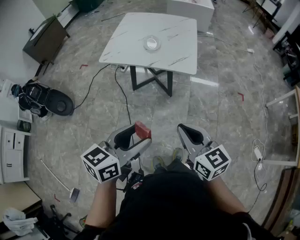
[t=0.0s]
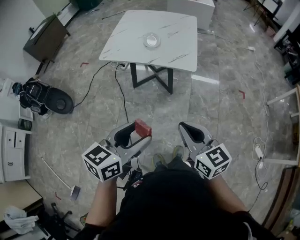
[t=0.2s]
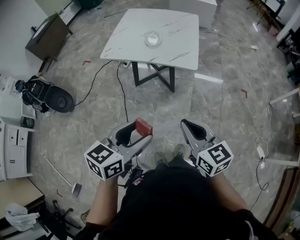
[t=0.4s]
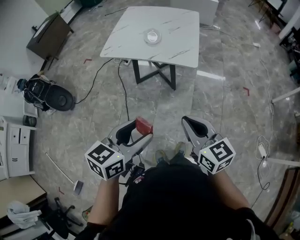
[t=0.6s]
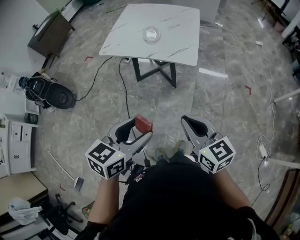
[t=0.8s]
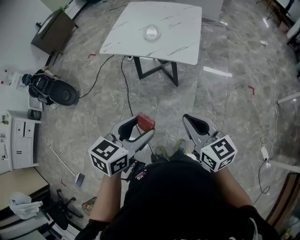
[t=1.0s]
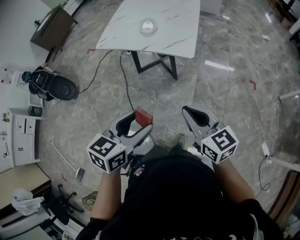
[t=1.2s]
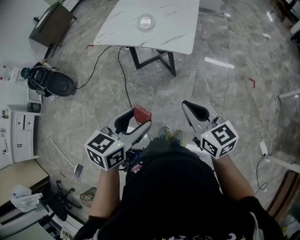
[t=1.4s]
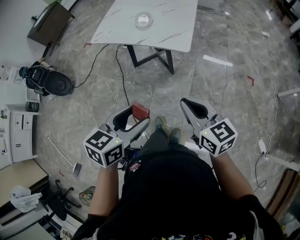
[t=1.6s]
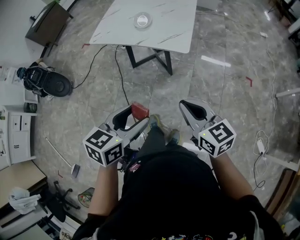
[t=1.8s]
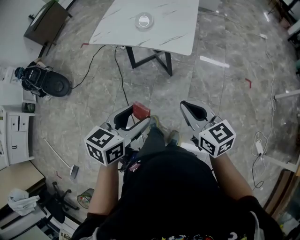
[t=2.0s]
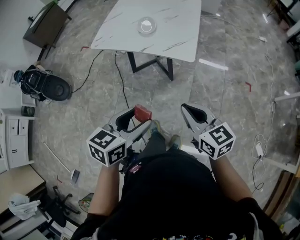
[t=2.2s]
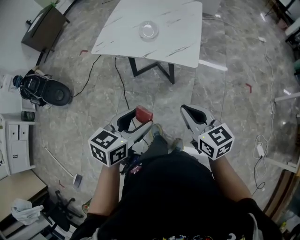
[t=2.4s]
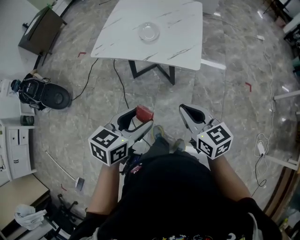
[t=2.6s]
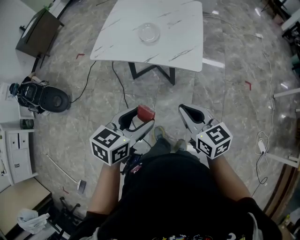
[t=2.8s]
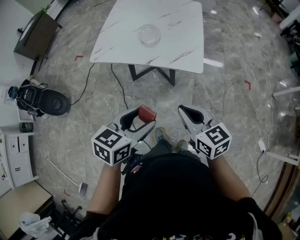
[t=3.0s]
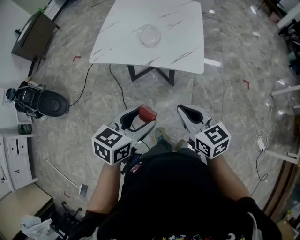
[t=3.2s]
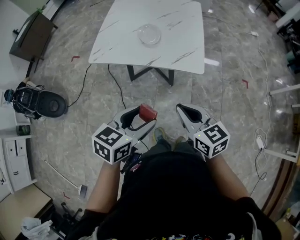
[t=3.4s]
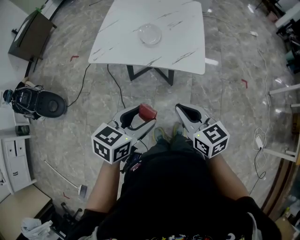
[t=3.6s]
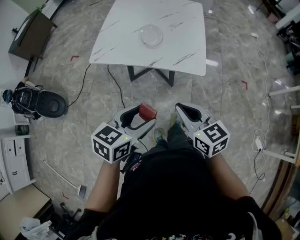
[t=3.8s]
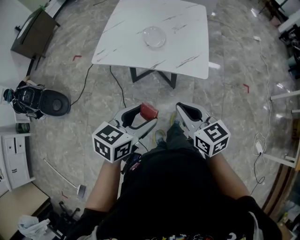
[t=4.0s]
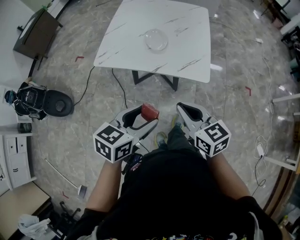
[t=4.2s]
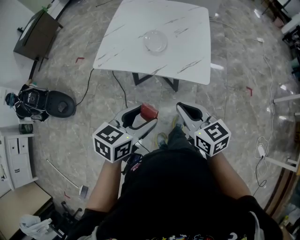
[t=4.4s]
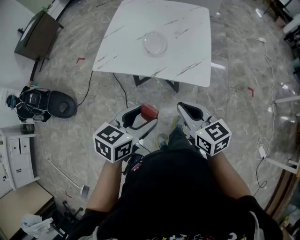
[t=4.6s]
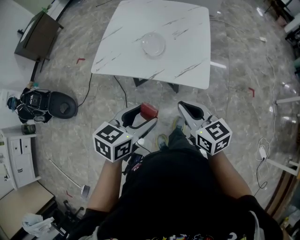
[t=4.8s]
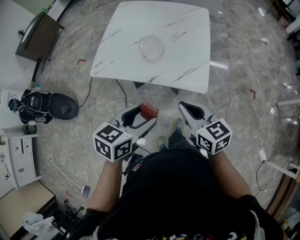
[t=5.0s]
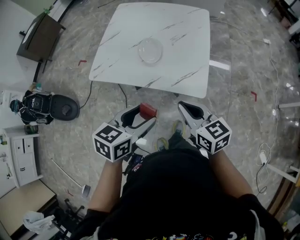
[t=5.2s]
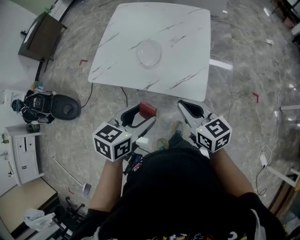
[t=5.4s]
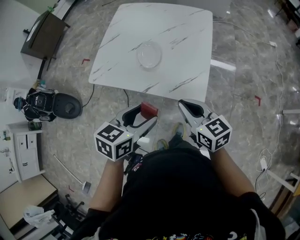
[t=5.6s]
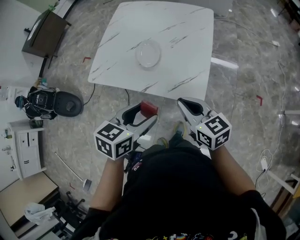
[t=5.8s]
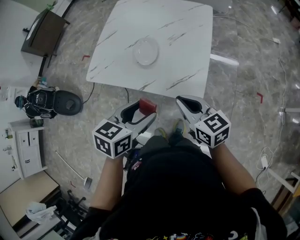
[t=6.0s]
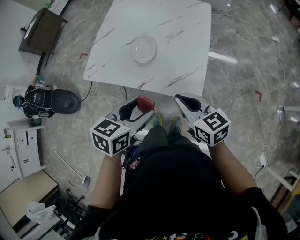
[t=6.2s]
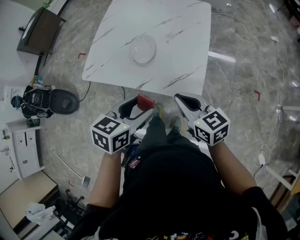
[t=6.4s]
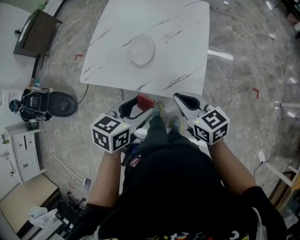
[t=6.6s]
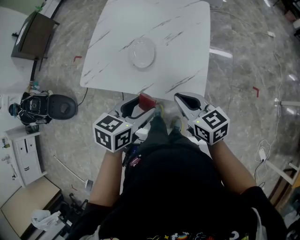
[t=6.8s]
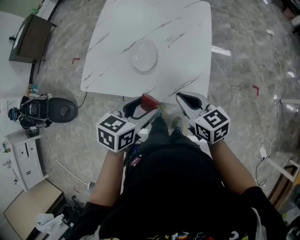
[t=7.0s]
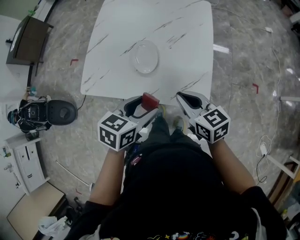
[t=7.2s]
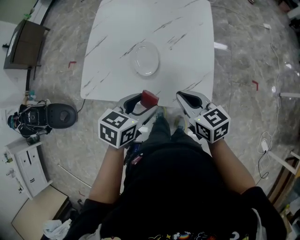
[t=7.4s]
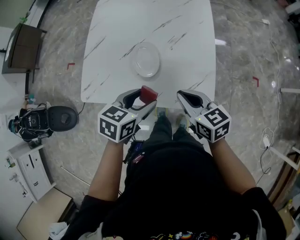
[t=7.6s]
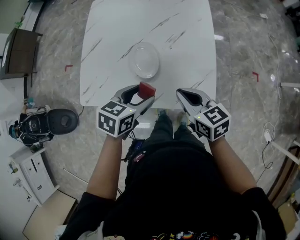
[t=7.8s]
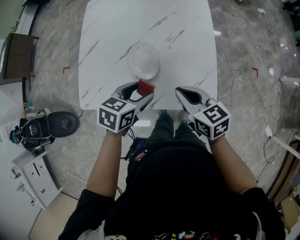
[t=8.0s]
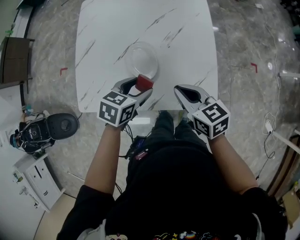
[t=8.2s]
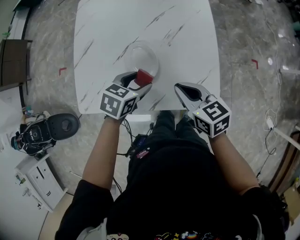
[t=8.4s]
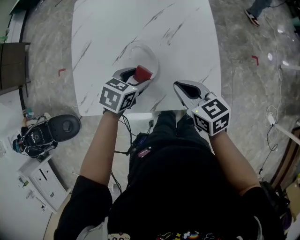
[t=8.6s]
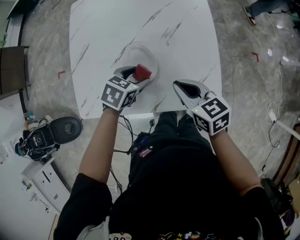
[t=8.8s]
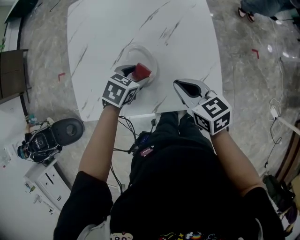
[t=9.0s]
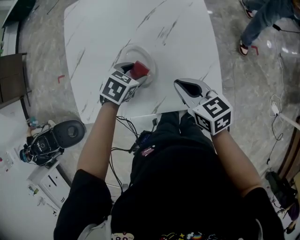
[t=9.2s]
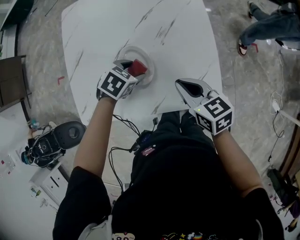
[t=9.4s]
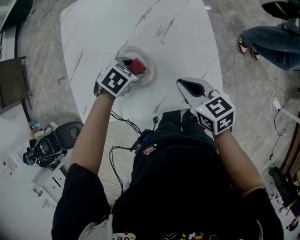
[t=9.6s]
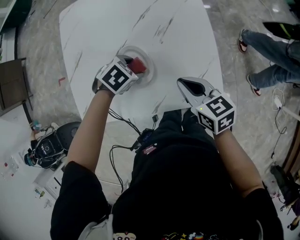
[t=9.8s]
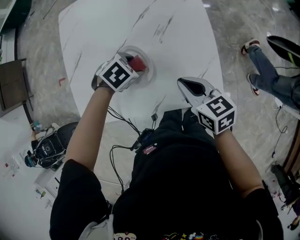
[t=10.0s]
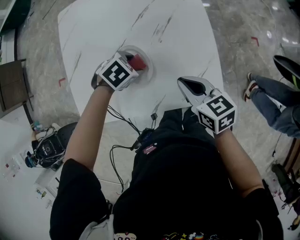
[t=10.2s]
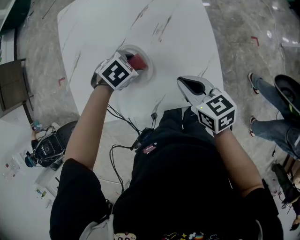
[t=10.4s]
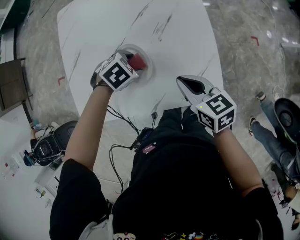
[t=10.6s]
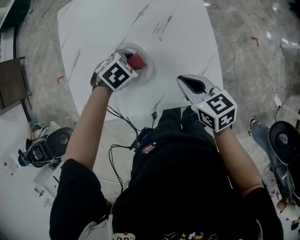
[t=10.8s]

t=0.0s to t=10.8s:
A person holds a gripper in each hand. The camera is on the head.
t=0.0s to t=1.6s: The right gripper shifts some 15 cm to the right and forward; the left gripper heads to the right and downward, covering approximately 15 cm.
t=1.6s to t=3.0s: The left gripper travels forward and to the left by approximately 20 cm, while the right gripper shifts about 15 cm to the left and forward.
t=3.0s to t=4.6s: The grippers both shift forward by about 10 cm.
t=4.6s to t=6.2s: The two grippers go roughly 15 cm forward and to the right.
t=6.2s to t=7.8s: The left gripper shifts roughly 20 cm forward, downward and to the left; the right gripper travels forward and to the left by some 15 cm.
t=7.8s to t=9.2s: The left gripper goes approximately 15 cm downward and forward, and swivels about 30 degrees, while the right gripper is displaced forward by about 5 cm.
t=9.2s to t=10.8s: The left gripper swivels roughly 20 degrees.

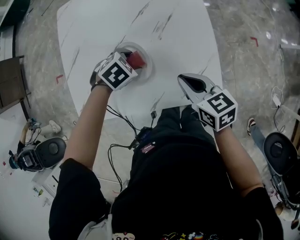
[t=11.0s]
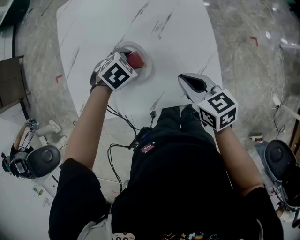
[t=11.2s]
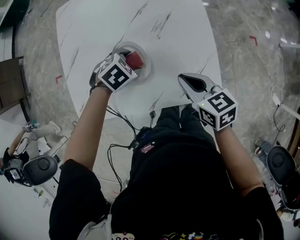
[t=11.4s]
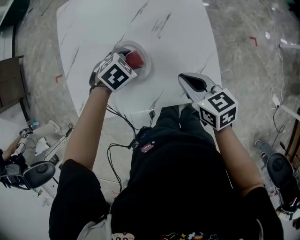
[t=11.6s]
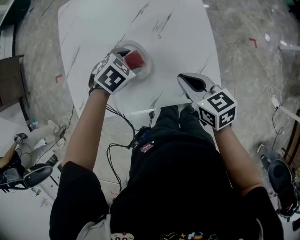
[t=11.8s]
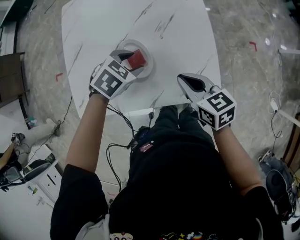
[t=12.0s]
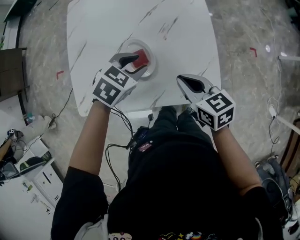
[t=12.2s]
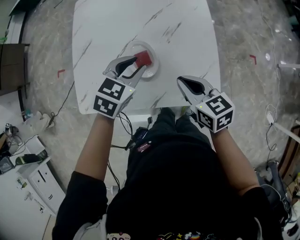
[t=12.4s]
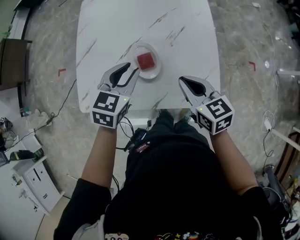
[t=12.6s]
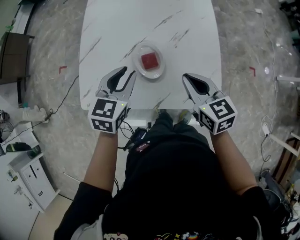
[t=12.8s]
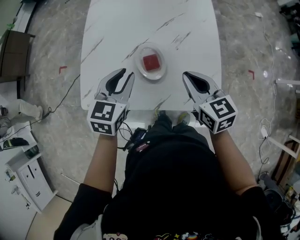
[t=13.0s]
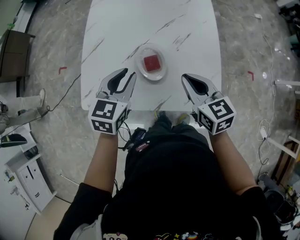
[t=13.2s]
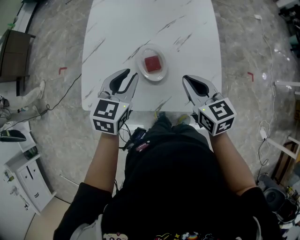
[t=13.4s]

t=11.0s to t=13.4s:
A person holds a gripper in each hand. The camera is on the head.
t=11.0s to t=12.2s: The left gripper travels upward by about 10 cm, and swivels roughly 20 degrees.
t=12.2s to t=13.4s: The right gripper goes some 5 cm upward; the left gripper heads to the left and upward, covering about 10 cm, and rotates roughly 40 degrees.

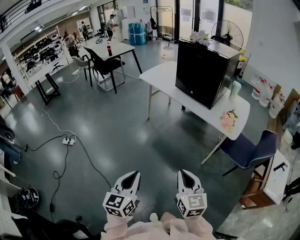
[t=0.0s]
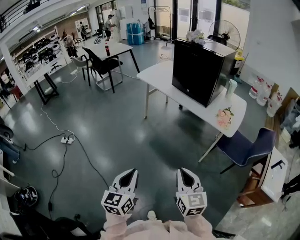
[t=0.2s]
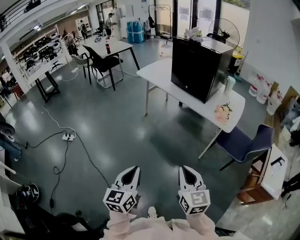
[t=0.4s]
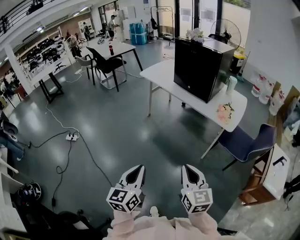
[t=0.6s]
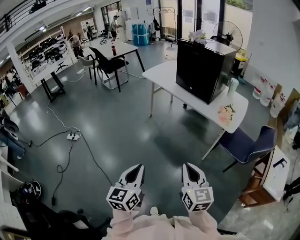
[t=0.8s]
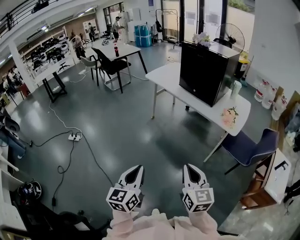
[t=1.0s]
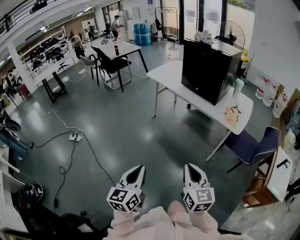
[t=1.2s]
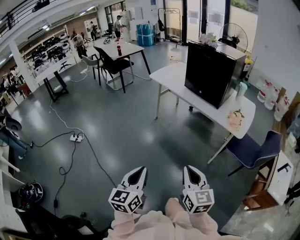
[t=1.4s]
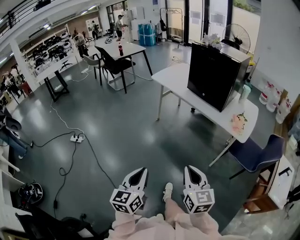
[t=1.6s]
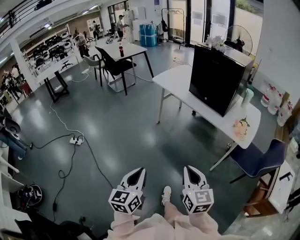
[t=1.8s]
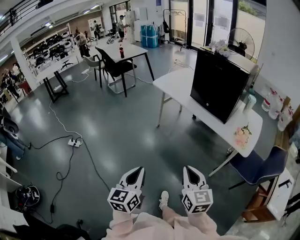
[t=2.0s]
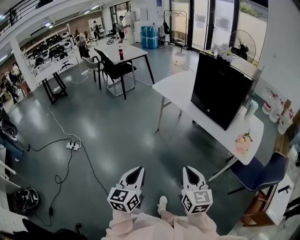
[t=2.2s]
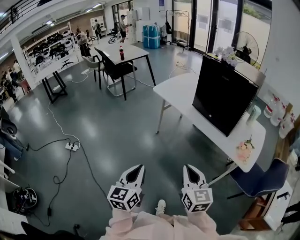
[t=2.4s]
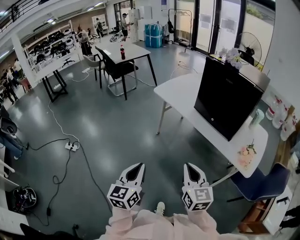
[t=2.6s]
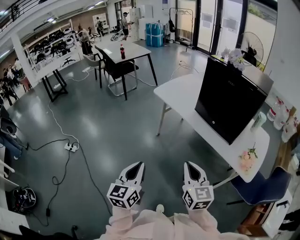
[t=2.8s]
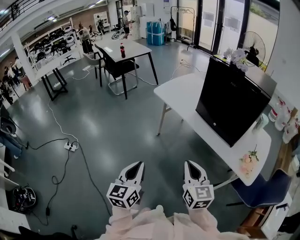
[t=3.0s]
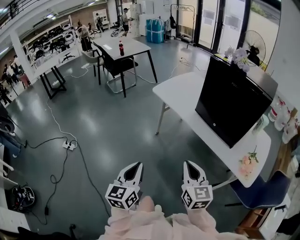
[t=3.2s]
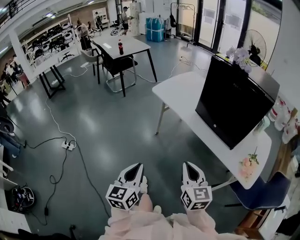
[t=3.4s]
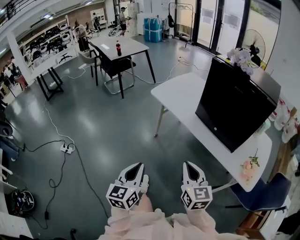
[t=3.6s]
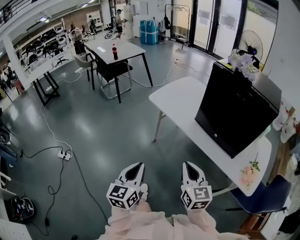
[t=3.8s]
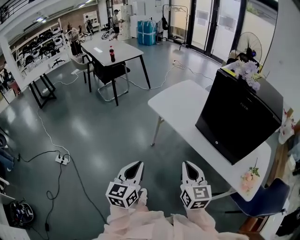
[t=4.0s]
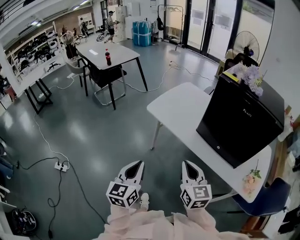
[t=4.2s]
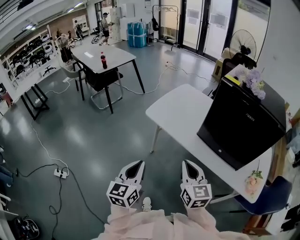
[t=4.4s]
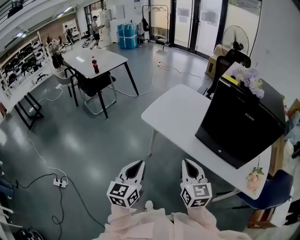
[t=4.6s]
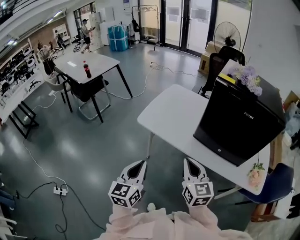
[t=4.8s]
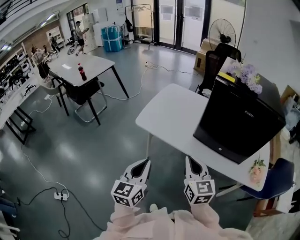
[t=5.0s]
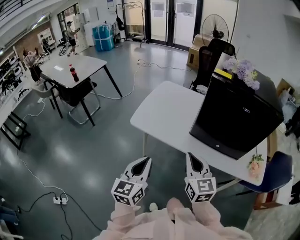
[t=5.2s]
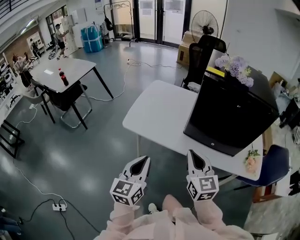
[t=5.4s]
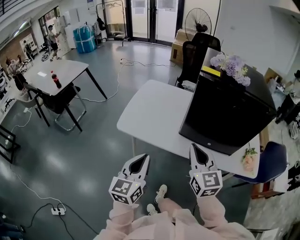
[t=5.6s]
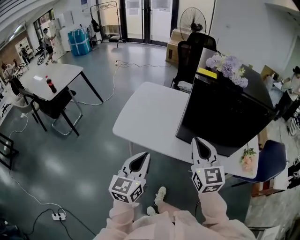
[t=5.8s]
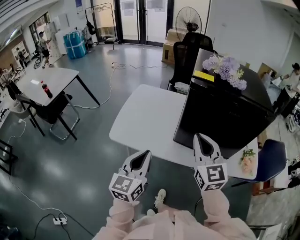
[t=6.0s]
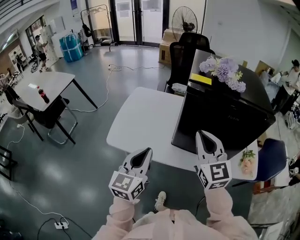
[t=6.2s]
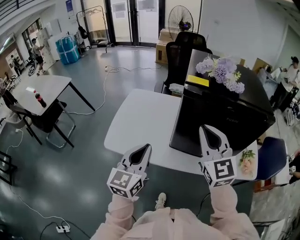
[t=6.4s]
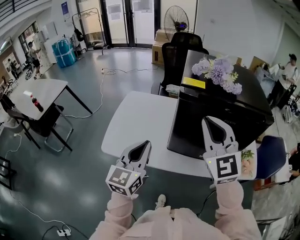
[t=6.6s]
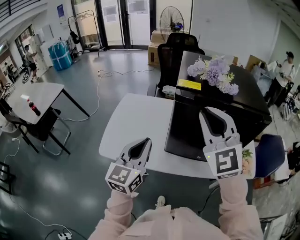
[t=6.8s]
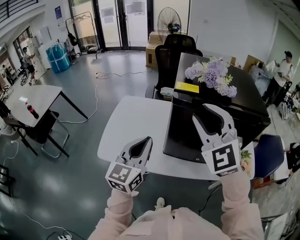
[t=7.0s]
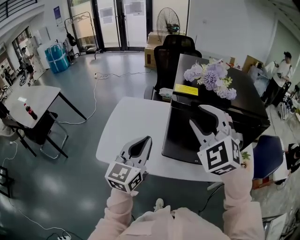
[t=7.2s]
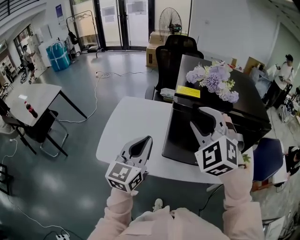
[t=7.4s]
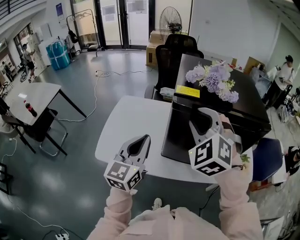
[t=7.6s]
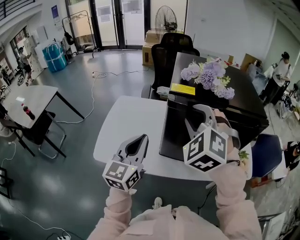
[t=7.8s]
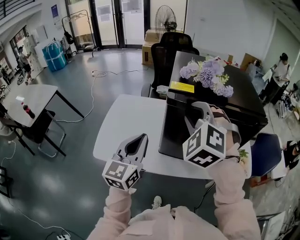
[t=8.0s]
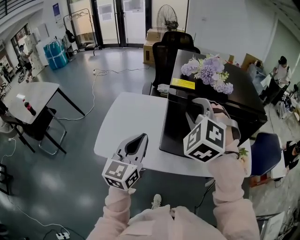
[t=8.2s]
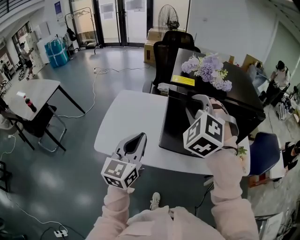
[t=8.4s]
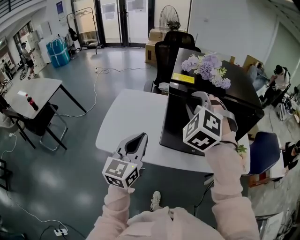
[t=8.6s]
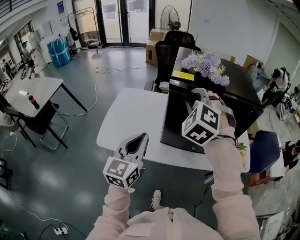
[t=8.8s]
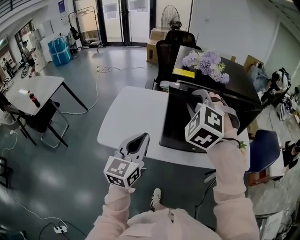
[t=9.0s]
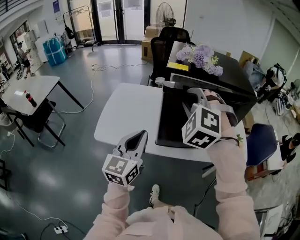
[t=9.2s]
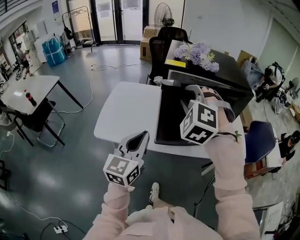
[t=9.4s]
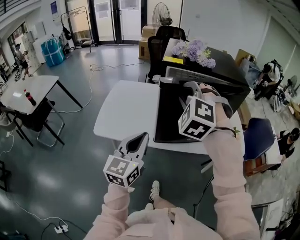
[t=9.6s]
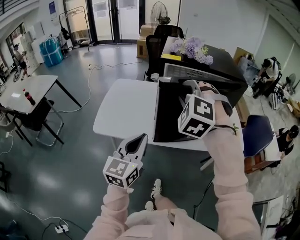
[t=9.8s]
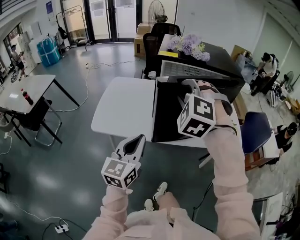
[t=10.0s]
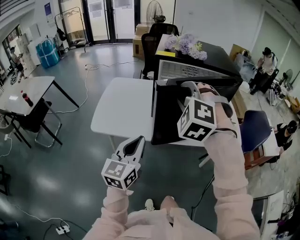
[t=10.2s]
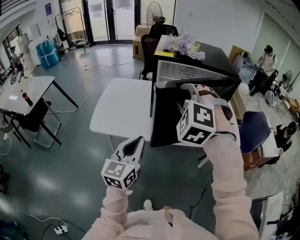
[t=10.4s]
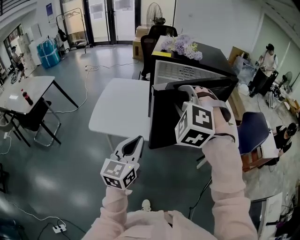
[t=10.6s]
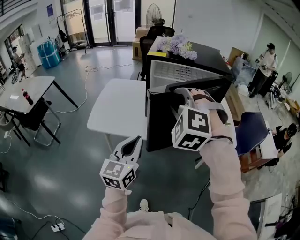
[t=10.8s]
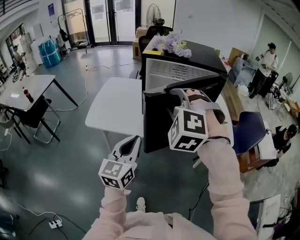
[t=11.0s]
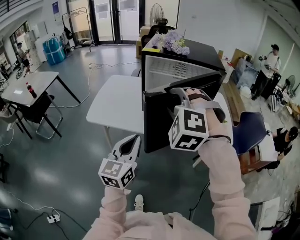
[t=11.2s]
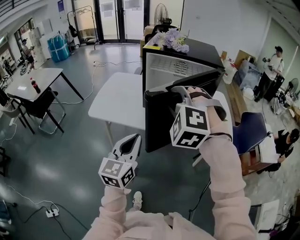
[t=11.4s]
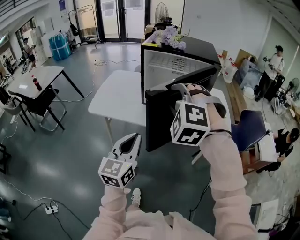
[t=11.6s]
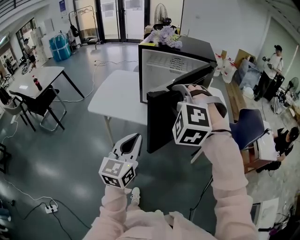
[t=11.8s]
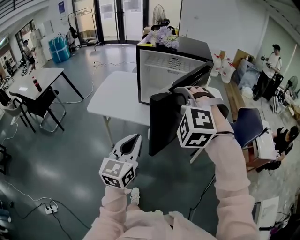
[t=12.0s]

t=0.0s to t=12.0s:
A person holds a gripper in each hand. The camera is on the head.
t=1.6s to t=3.0s: Both grippers move forward, roughly 35 cm.
t=3.0s to t=4.4s: The grippers both shift forward by about 30 cm.
t=4.4s to t=6.0s: The left gripper shifts by some 25 cm, and swivels some 30 degrees; the right gripper moves some 25 cm, and turns by roughly 30 degrees.
t=6.0s to t=7.6s: Both grippers travel together forward and upward, about 15 cm. The right gripper rolls counterclockwise, seen from behind, by some 50 degrees, and opens its fingers.
t=7.6s to t=9.0s: The left gripper moves backward, about 10 cm.
t=9.0s to t=10.4s: The right gripper is displaced backward by roughly 10 cm; the left gripper heads backward and to the right, covering roughly 15 cm.
t=10.4s to t=12.0s: Both grippers move backward and to the right, about 20 cm.
